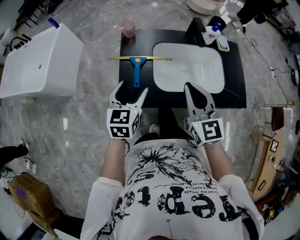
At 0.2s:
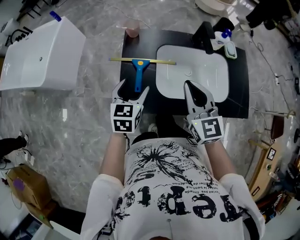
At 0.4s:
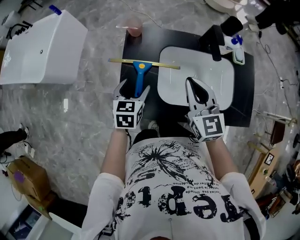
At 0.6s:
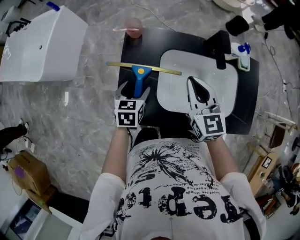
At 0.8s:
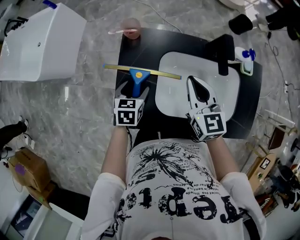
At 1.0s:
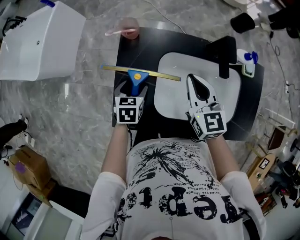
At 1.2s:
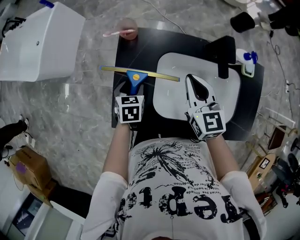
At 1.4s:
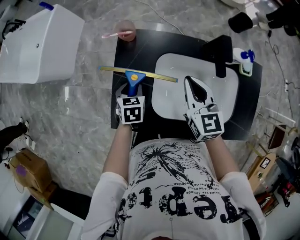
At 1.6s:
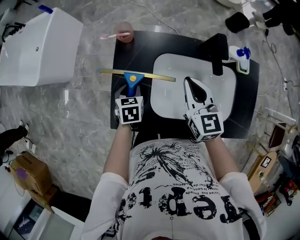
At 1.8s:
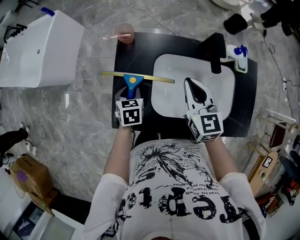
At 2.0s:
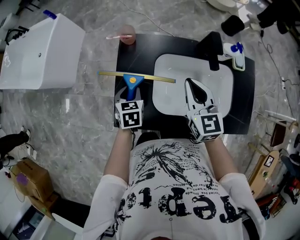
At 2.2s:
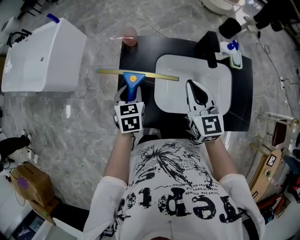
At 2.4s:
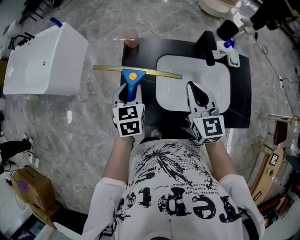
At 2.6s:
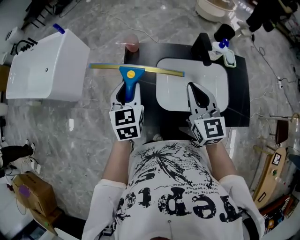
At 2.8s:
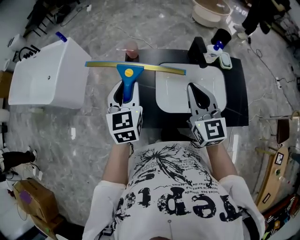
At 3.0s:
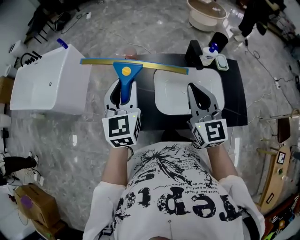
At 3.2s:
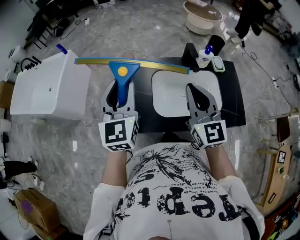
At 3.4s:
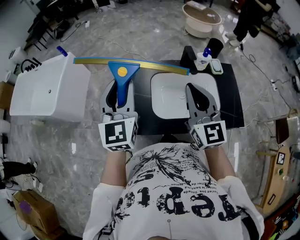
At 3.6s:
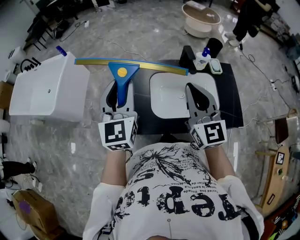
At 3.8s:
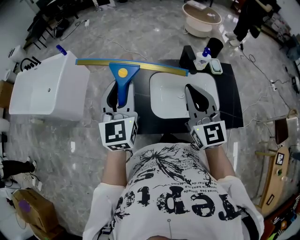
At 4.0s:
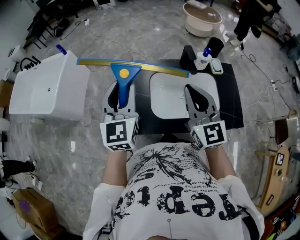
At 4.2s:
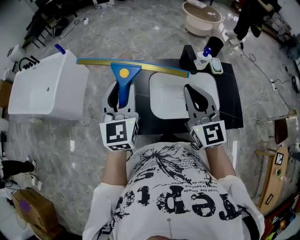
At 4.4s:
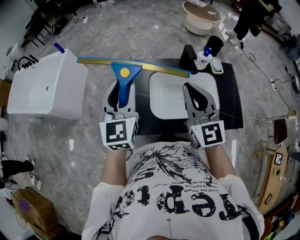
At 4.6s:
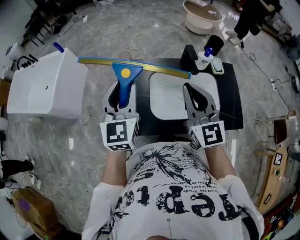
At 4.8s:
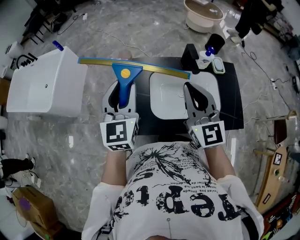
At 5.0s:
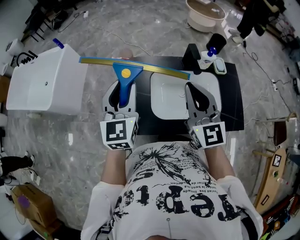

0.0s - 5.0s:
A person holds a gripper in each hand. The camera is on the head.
0.0s - 1.6s: The left gripper heads downward and forward, covering approximately 30 cm, points its fingers approximately 30 degrees further downward, and closes up. The right gripper goes roughly 30 cm forward and downward.
1.6s - 3.4s: The right gripper heads upward and backward, covering some 30 cm, and changes its angle by approximately 30 degrees. The left gripper goes about 40 cm upward, and tips its fingers upward by about 60 degrees.
3.4s - 5.0s: The left gripper shifts some 5 cm downward.

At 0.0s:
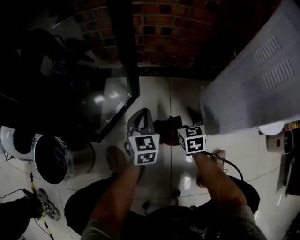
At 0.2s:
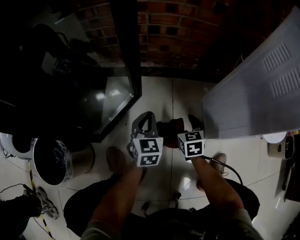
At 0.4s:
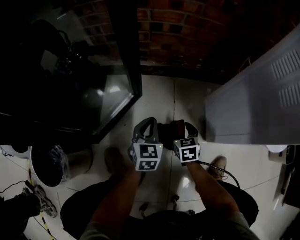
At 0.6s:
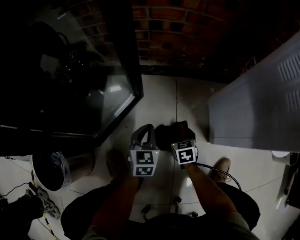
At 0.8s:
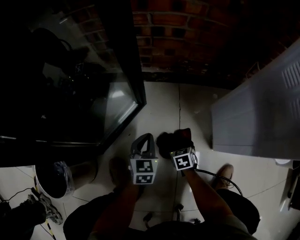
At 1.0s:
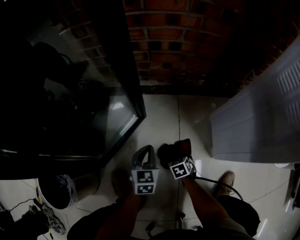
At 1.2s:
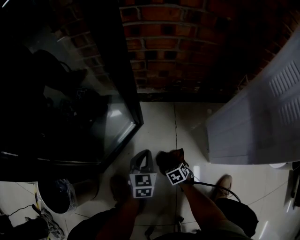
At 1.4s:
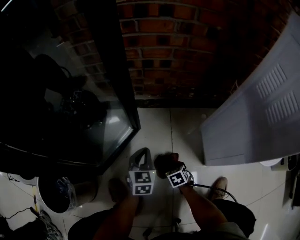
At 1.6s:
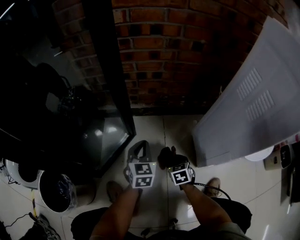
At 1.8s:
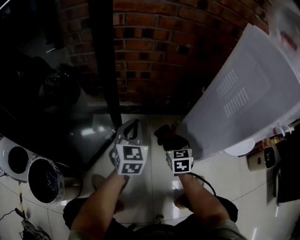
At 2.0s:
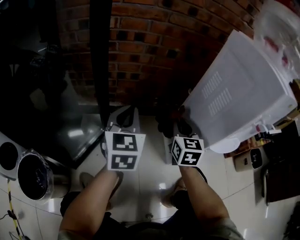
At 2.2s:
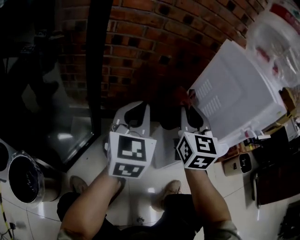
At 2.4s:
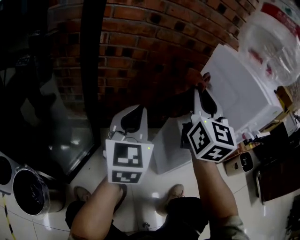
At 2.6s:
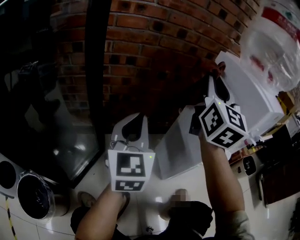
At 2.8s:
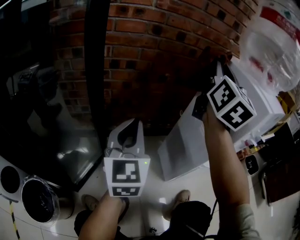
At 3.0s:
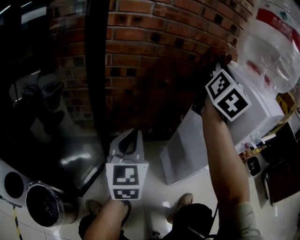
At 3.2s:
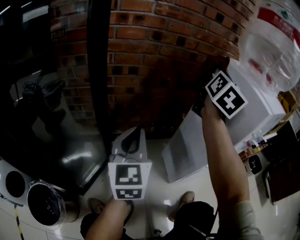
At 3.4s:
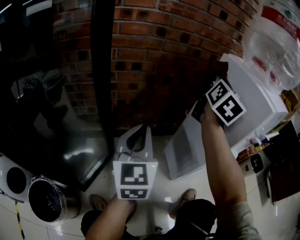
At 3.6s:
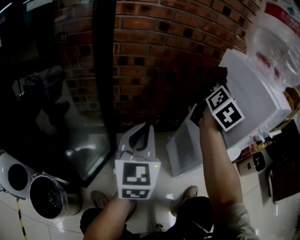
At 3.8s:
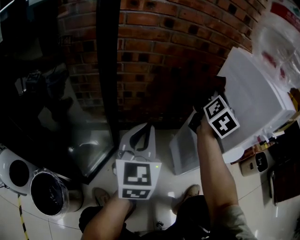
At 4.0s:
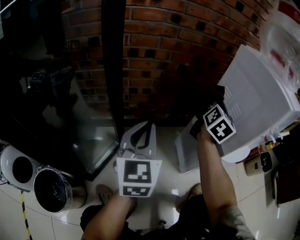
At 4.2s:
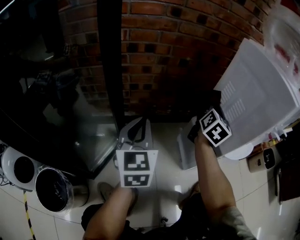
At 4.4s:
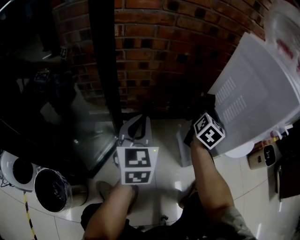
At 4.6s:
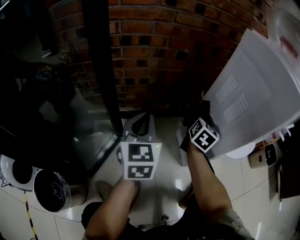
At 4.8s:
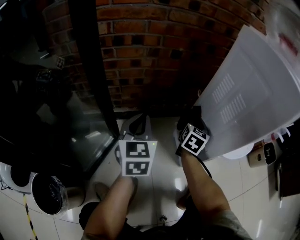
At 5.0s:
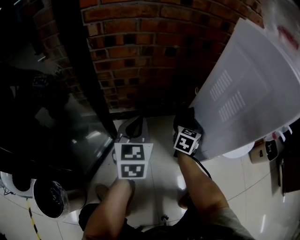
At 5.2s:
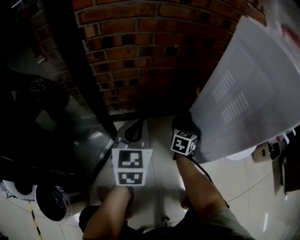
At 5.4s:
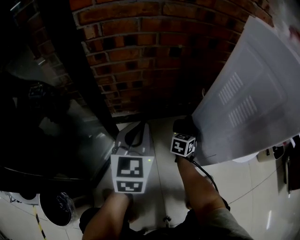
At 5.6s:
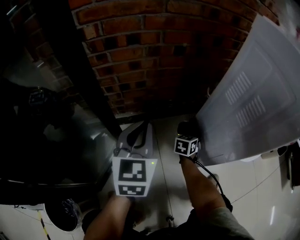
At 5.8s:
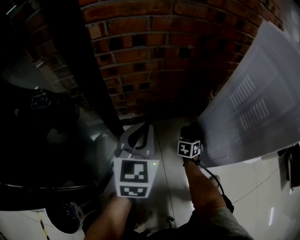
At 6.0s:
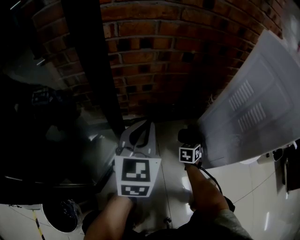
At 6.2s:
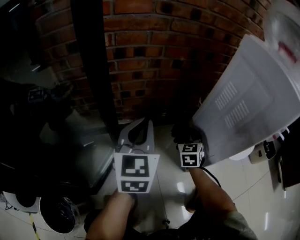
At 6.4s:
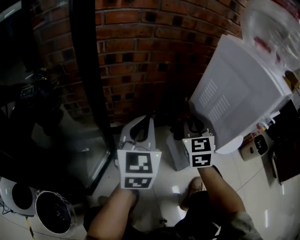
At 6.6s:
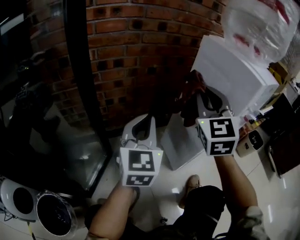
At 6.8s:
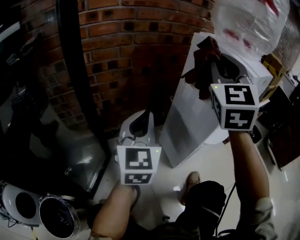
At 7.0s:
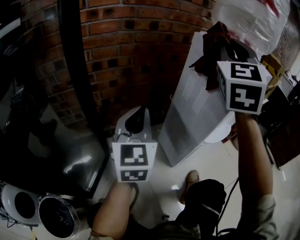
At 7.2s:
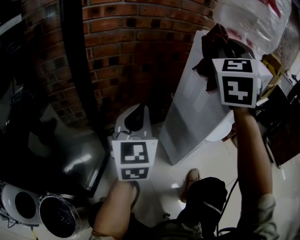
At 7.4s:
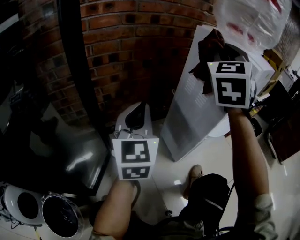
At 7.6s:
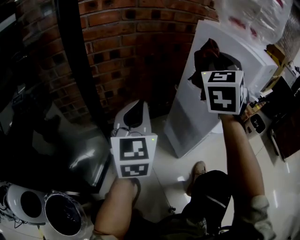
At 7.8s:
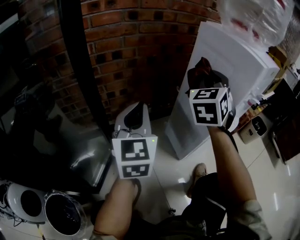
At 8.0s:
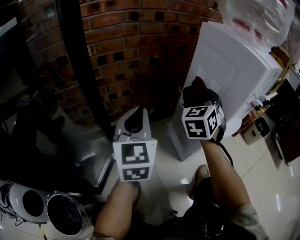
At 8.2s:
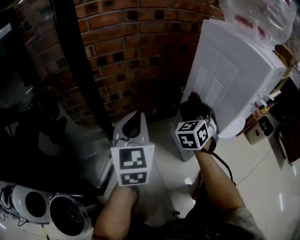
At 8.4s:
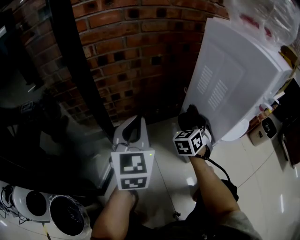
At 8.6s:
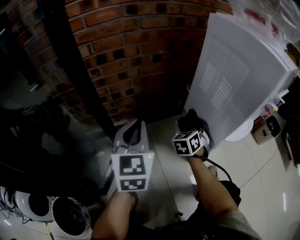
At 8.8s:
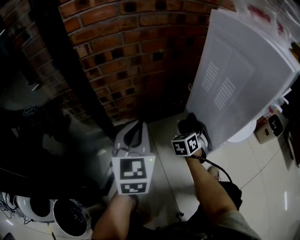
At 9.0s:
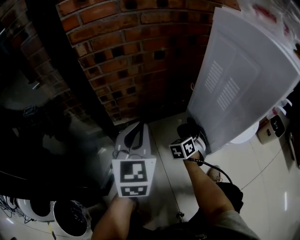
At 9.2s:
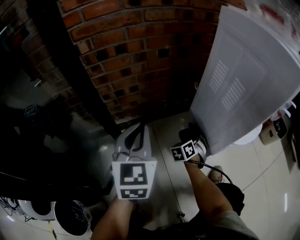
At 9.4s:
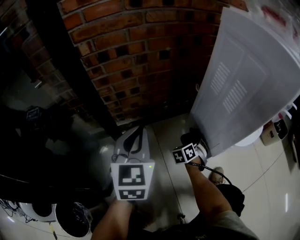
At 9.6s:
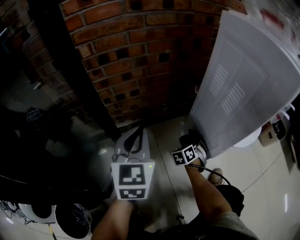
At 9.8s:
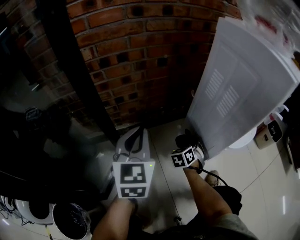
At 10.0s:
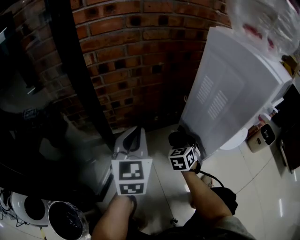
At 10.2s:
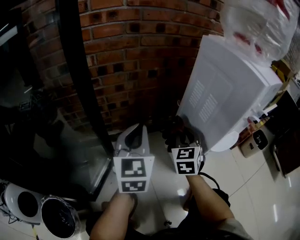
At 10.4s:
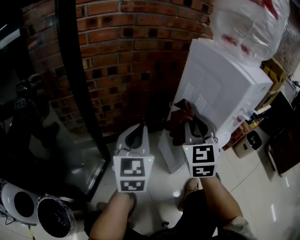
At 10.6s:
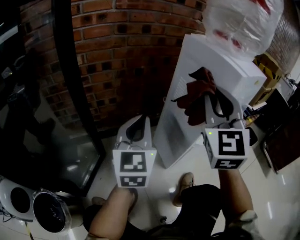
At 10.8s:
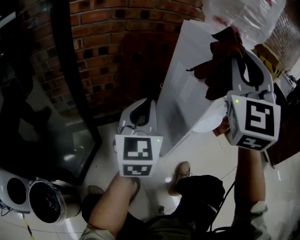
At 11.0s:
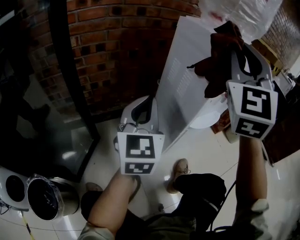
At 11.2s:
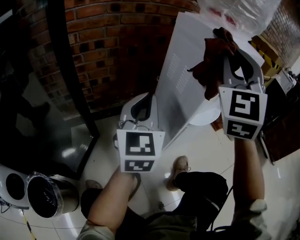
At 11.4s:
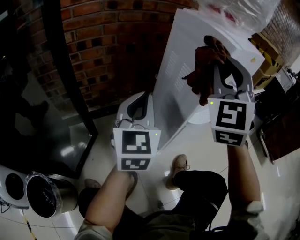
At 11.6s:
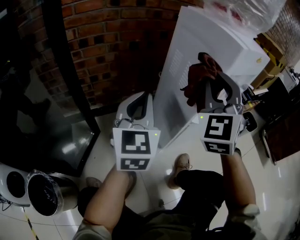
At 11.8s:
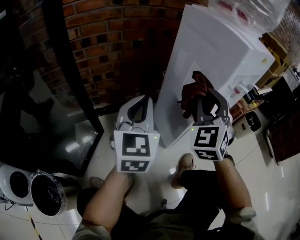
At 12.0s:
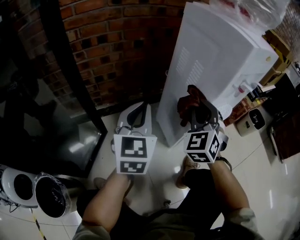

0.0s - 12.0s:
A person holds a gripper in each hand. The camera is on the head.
0.0s - 1.6s: The left gripper travels downward and back again, some 10 cm each way; the right gripper reaches about 25 cm downward, then returns, and closes its fingers.
1.6s - 3.0s: The right gripper moves upward, some 70 cm, and tips its fingers upward by approximately 70 degrees. Meanwhile the left gripper heads upward, covering some 30 cm, and turns by about 30 degrees.
3.0s - 4.4s: The right gripper shifts some 35 cm downward, and rotates approximately 30 degrees; the left gripper heads downward, covering roughly 5 cm.
4.4s - 6.0s: The left gripper shifts by approximately 5 cm. Meanwhile the right gripper shifts approximately 25 cm downward, and turns by some 50 degrees.
6.0s - 7.6s: The left gripper heads upward and to the right, covering roughly 10 cm. Meanwhile the right gripper goes approximately 50 cm upward, and tilts its fingers about 40 degrees upward.
7.6s - 9.0s: The left gripper heads downward, covering about 10 cm. The right gripper goes approximately 50 cm downward, and tilts its fingers approximately 30 degrees downward.
9.0s - 10.4s: The left gripper heads upward, covering roughly 5 cm. Meanwhile the right gripper goes some 35 cm upward, and points its fingers roughly 30 degrees further upward.
10.4s - 12.0s: The two grippers go about 5 cm to the right. The right gripper goes upward and returns, approximately 25 cm each way, and rotates roughly 20 degrees.

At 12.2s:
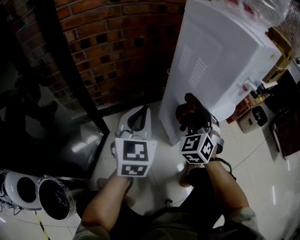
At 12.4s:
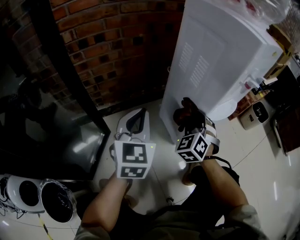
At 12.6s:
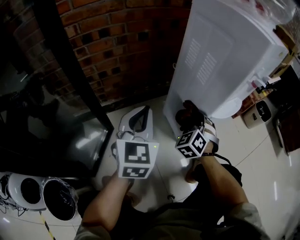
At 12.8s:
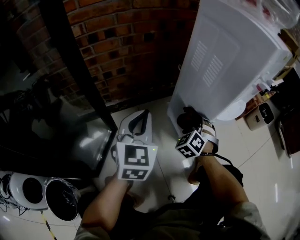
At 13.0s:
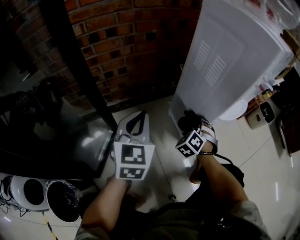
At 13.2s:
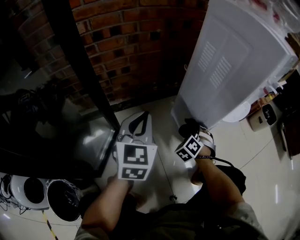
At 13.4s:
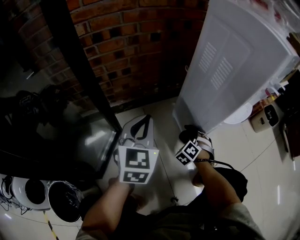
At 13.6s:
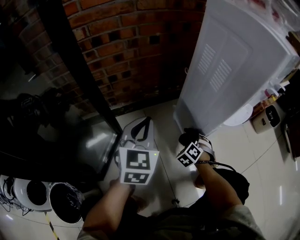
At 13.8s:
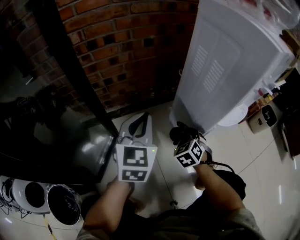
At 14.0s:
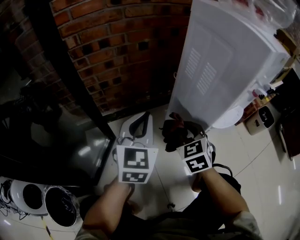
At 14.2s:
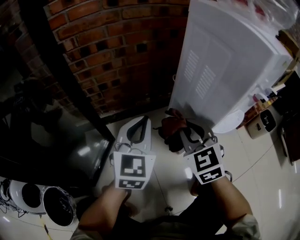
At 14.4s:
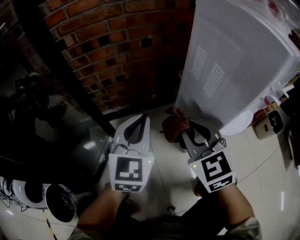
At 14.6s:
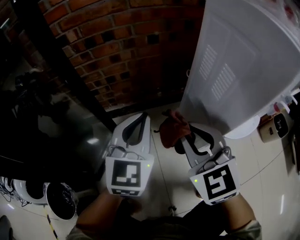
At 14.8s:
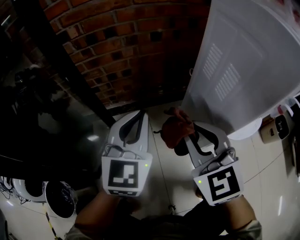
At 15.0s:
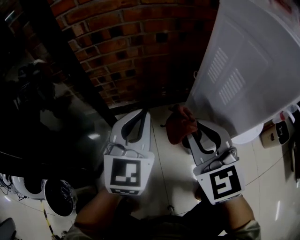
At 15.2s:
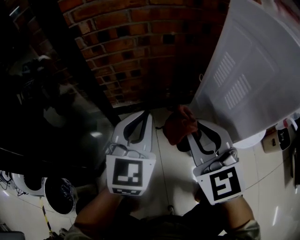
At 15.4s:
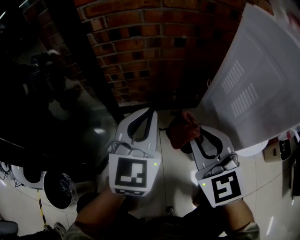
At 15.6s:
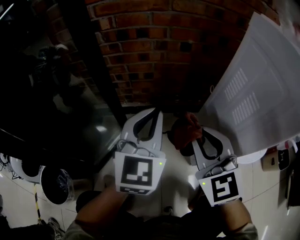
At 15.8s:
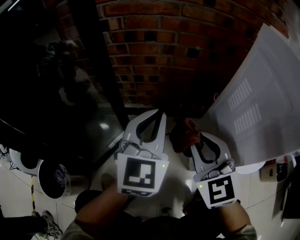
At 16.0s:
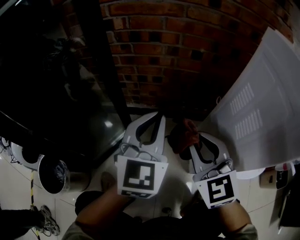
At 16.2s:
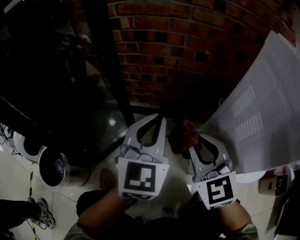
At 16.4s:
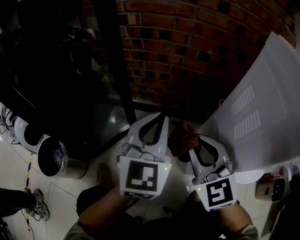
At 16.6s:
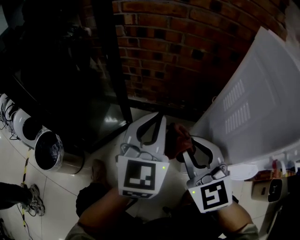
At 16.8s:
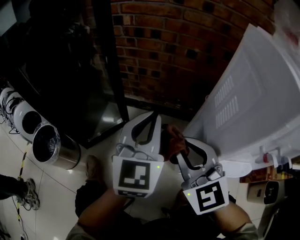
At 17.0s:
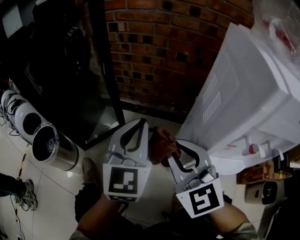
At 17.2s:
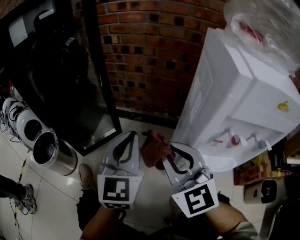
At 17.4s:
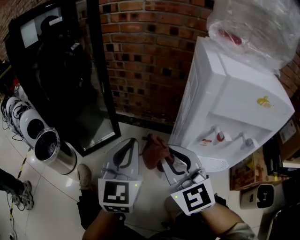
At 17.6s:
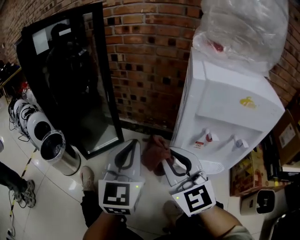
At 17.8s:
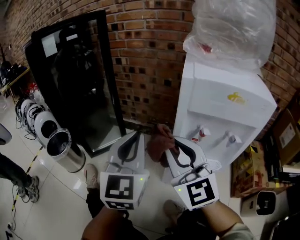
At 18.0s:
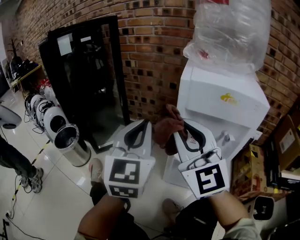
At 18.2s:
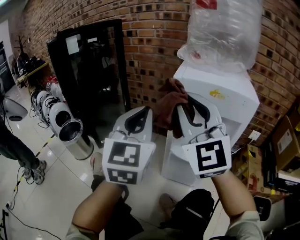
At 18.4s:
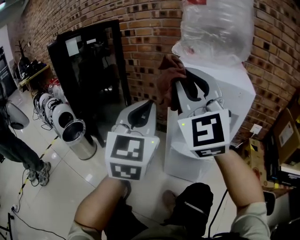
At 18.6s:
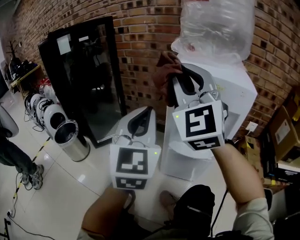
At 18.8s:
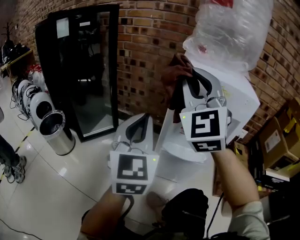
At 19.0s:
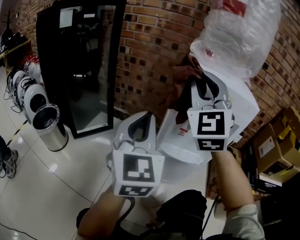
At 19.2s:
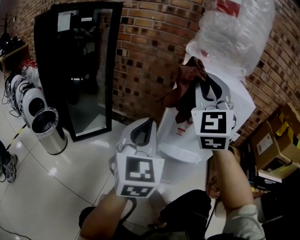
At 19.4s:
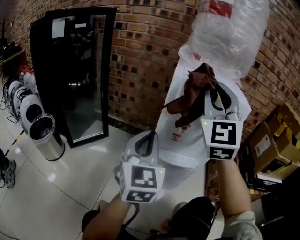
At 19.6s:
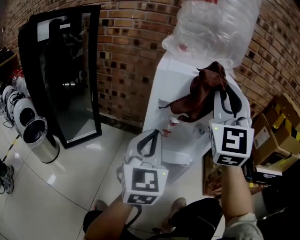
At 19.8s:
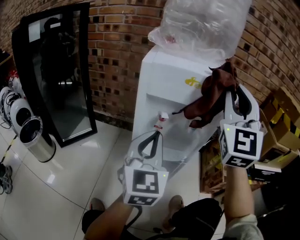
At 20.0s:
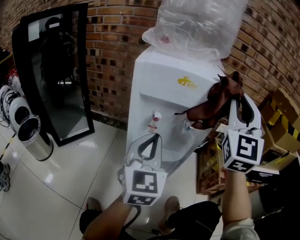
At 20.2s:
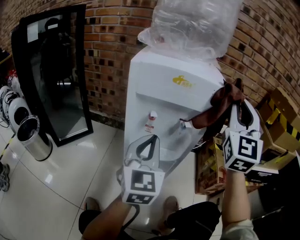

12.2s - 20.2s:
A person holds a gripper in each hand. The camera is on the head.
12.2s - 13.8s: The right gripper shifts roughly 15 cm downward, and rotates roughly 30 degrees.
13.8s - 15.4s: The left gripper moves about 5 cm, while the right gripper travels upward by some 25 cm, and changes its angle by roughly 50 degrees.
15.4s - 17.0s: The grippers both shift backward by about 10 cm. The left gripper rotates about 20 degrees, while the right gripper turns by about 30 degrees.
17.0s - 18.6s: The left gripper travels backward, upward and to the right by roughly 30 cm. The right gripper moves upward, some 25 cm, and turns by some 30 degrees.
18.6s - 20.2s: The left gripper travels to the right and downward by roughly 20 cm, while the right gripper heads to the right, covering roughly 30 cm, and swivels about 30 degrees.
